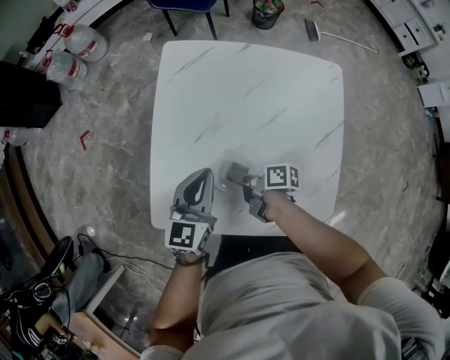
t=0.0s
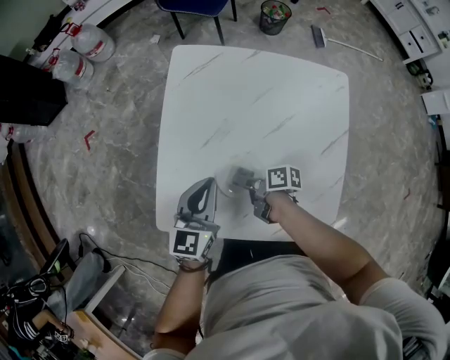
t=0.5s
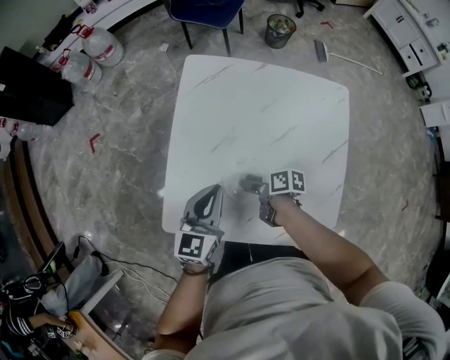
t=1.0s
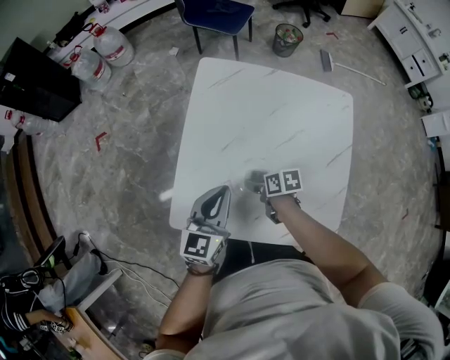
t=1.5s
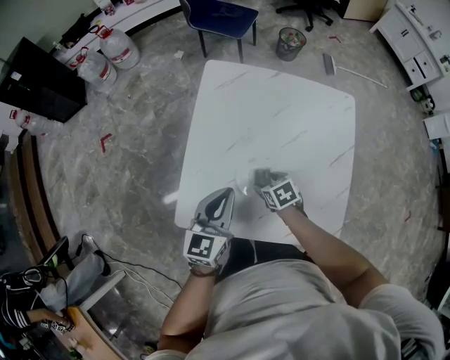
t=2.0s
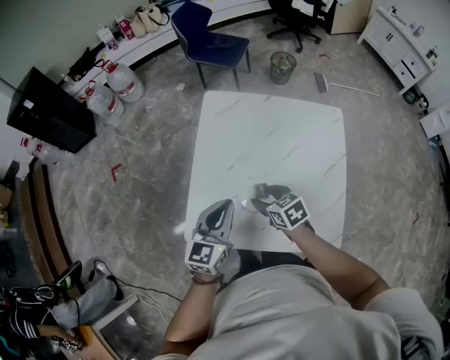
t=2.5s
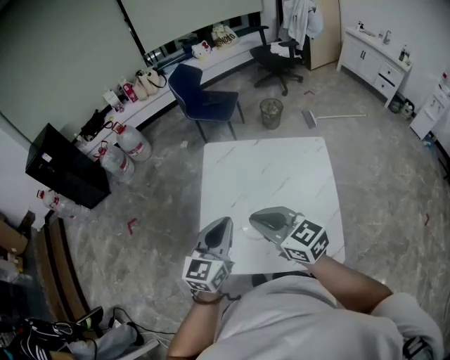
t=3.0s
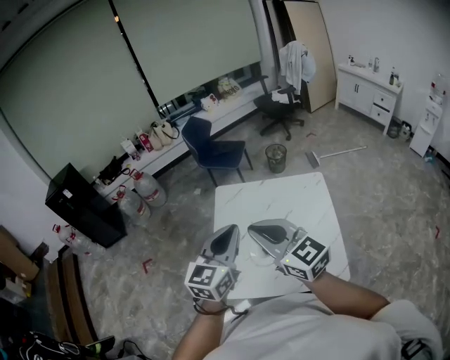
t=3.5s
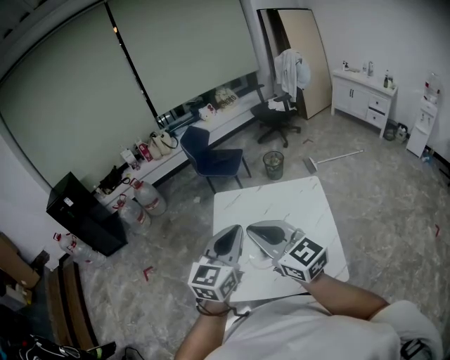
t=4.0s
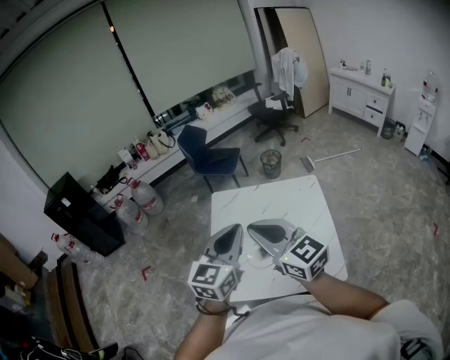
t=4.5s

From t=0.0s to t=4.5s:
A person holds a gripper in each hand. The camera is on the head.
From t=0.0s to t=2.0s: The left gripper goes roughly 5 cm to the left. Meanwhile the right gripper rolls counterclockwise, seen from behind, by some 60 degrees, and opens up.
From t=2.0s to t=4.5s: The right gripper shifts some 50 cm upward, tips its fingers upward by some 60 degrees, and closes up. Meanwhile the left gripper shifts approximately 35 cm upward, and swivels some 20 degrees.

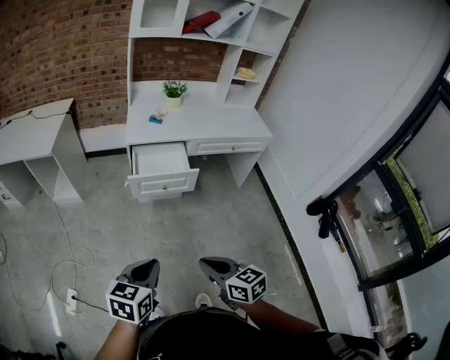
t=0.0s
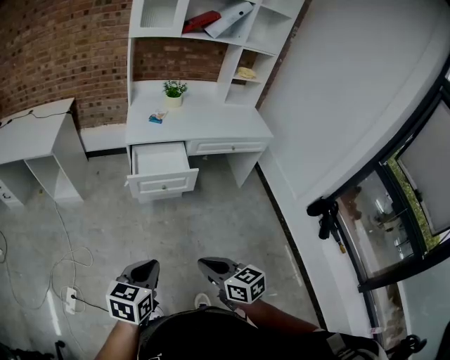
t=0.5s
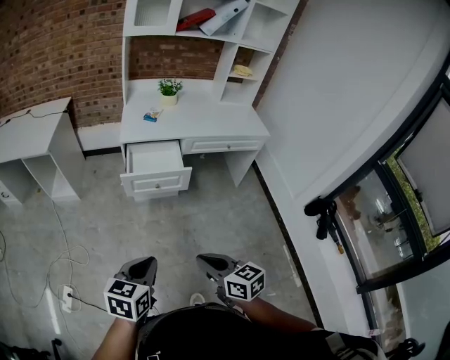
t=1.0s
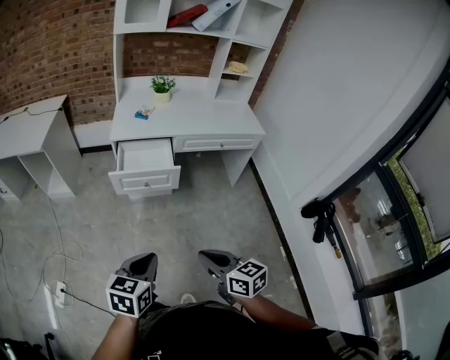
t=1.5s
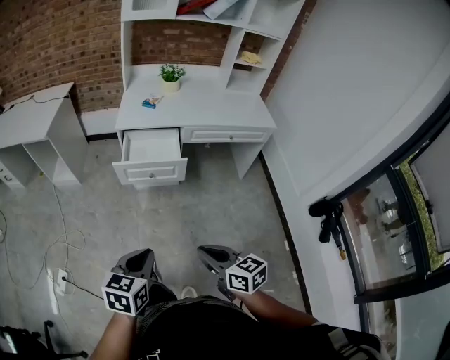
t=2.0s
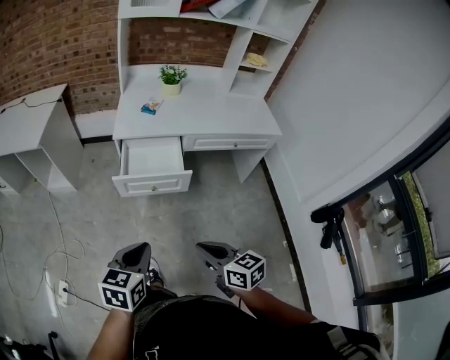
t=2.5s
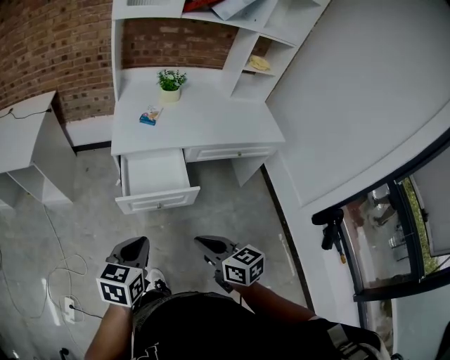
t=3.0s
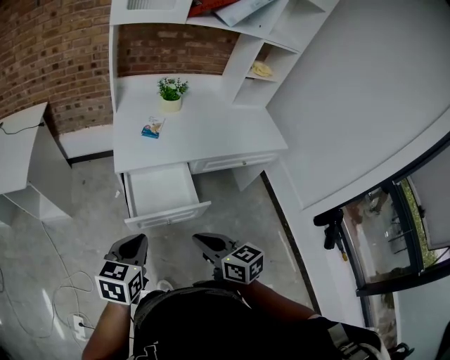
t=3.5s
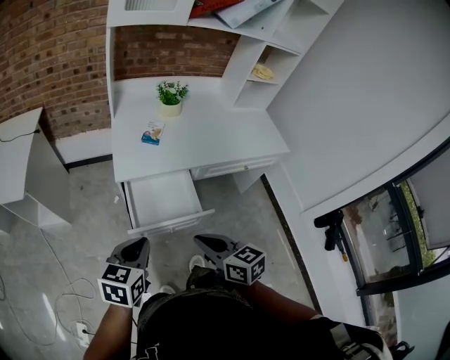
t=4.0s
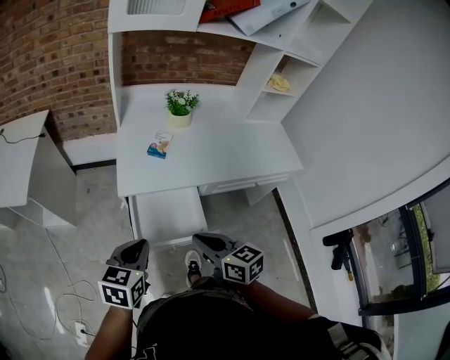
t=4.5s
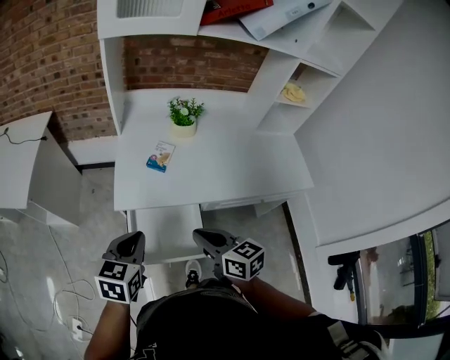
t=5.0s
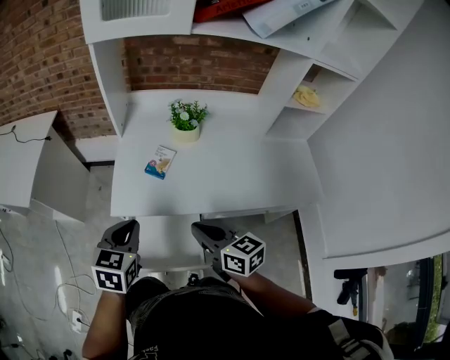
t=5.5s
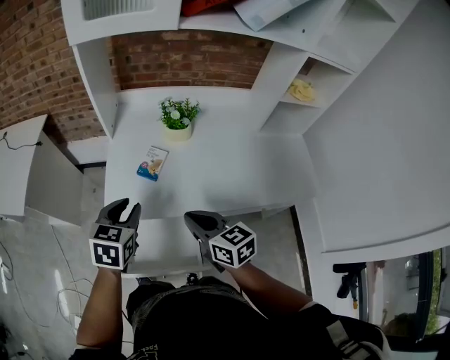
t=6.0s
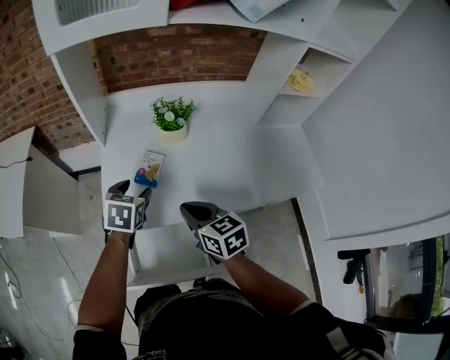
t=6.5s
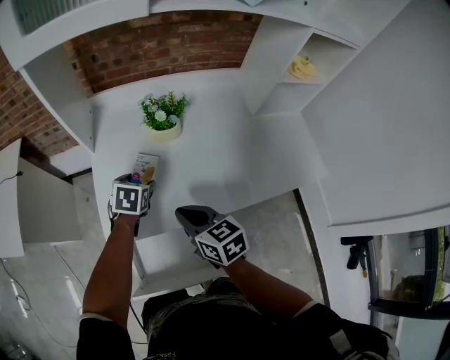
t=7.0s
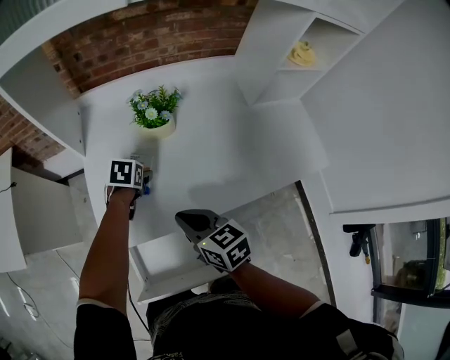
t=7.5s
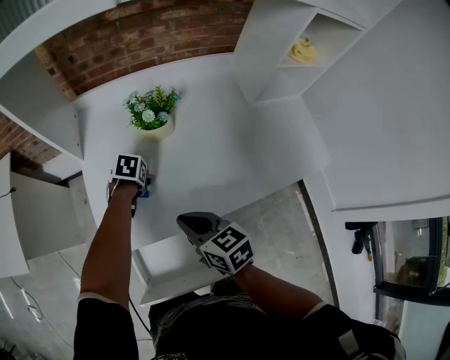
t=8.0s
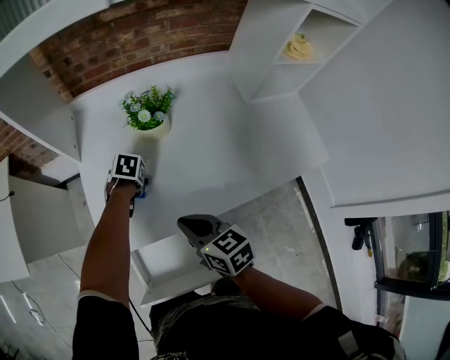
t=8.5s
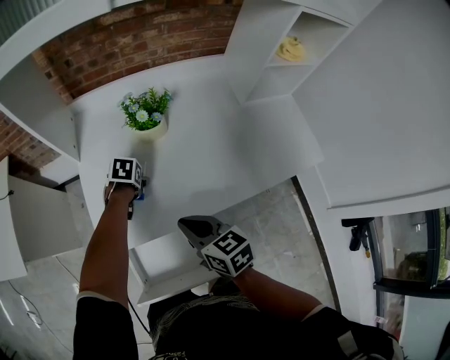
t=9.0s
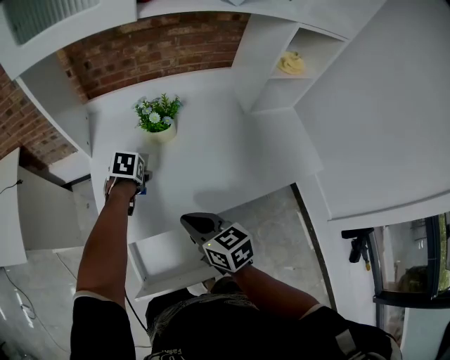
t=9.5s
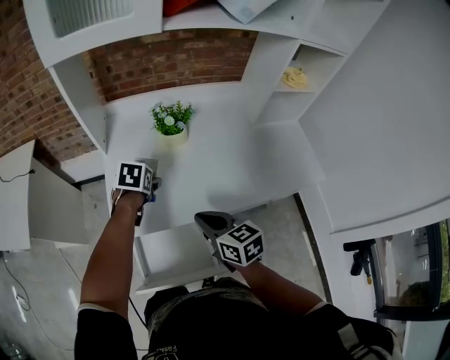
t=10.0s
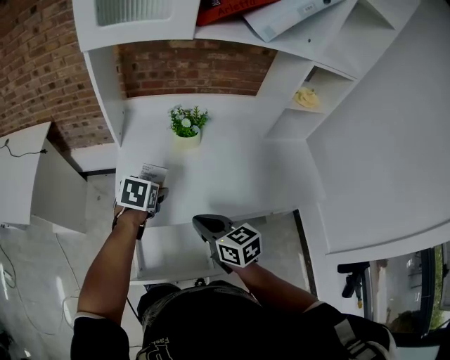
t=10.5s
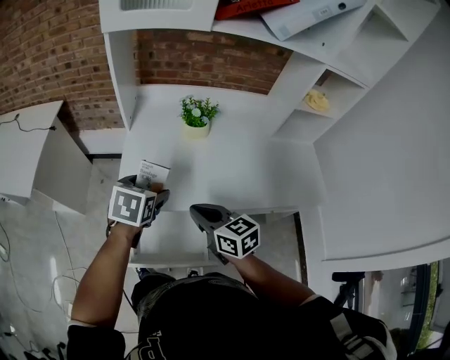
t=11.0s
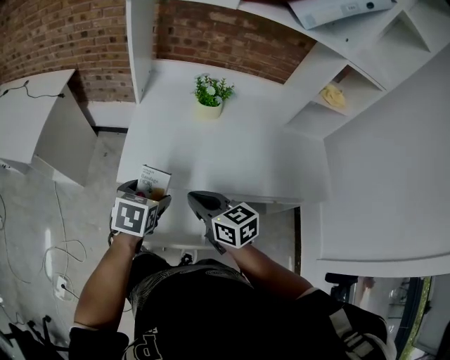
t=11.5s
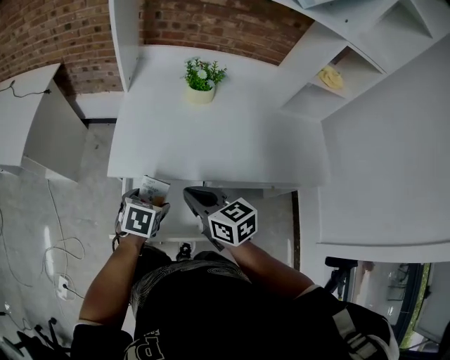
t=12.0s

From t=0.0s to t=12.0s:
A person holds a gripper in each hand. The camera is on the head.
From t=0.0s to t=2.0s: Both grippers move to the right, approximately 10 cm.
From t=2.0s to t=4.0s: Both grippers travel together forward, approximately 35 cm.
From t=4.0s to t=6.0s: The grippers both shift forward and to the right by roughly 30 cm.
From t=6.0s to t=8.0s: The right gripper is displaced forward and downward by roughly 10 cm, while the left gripper travels downward and forward by approximately 35 cm, angles its fingers downward, by some 40 degrees, and opens up.
From t=8.0s to t=10.0s: The left gripper shifts roughly 15 cm upward; the right gripper changes place by some 10 cm.
From t=10.0s to t=12.0s: The left gripper goes roughly 25 cm backward. Meanwhile the right gripper moves backward and to the left, approximately 10 cm.

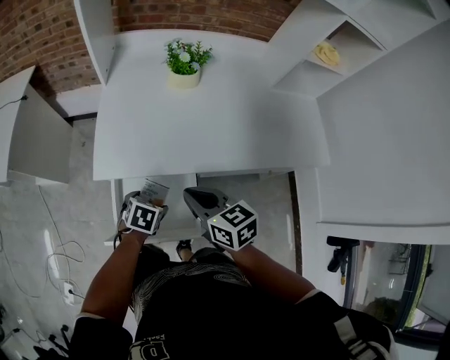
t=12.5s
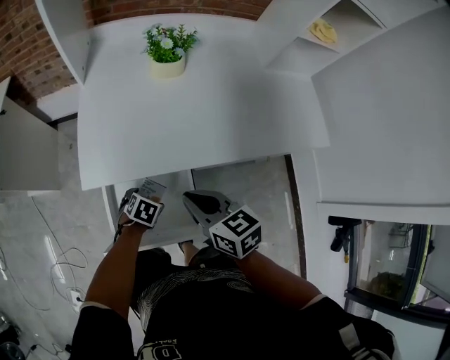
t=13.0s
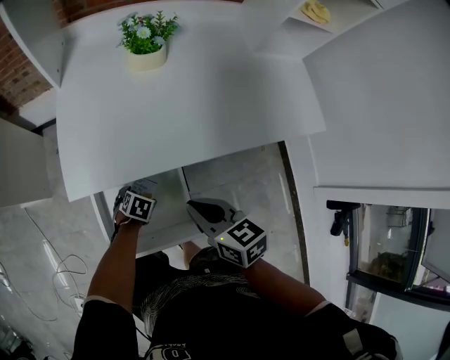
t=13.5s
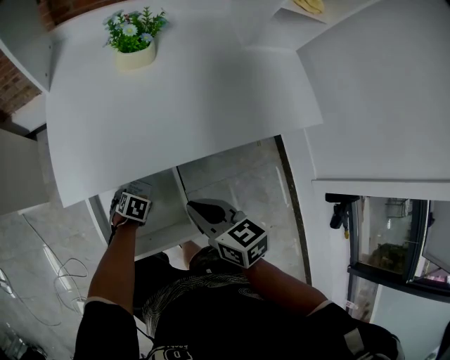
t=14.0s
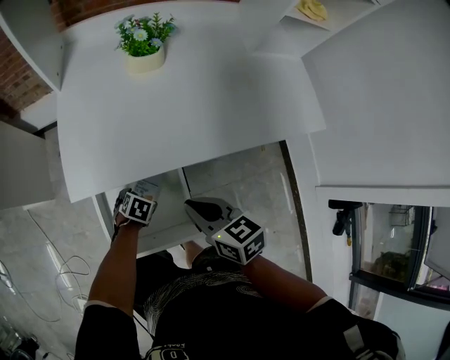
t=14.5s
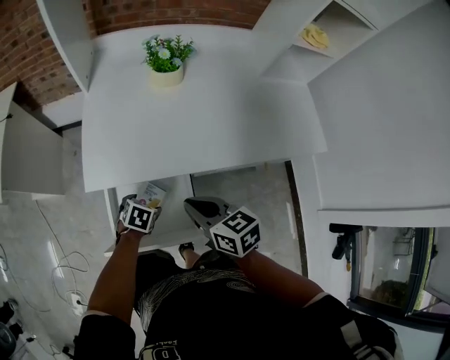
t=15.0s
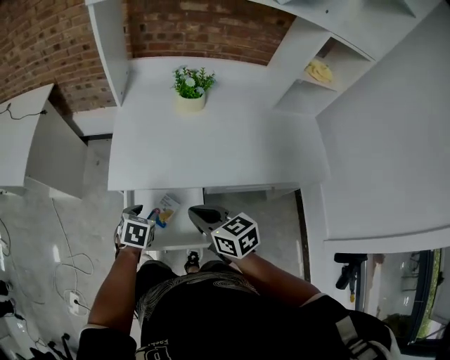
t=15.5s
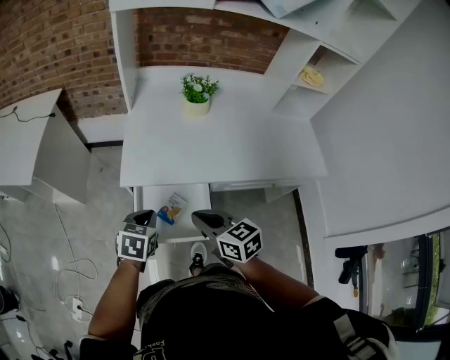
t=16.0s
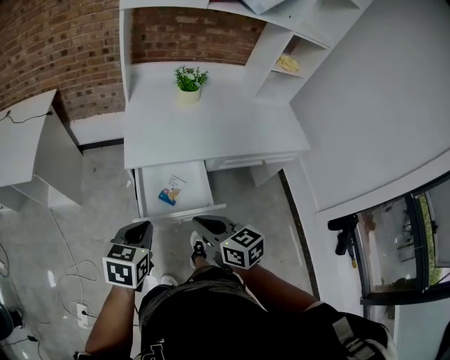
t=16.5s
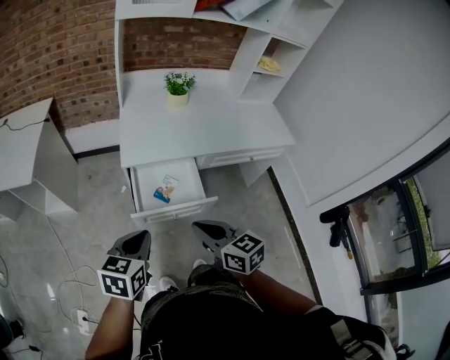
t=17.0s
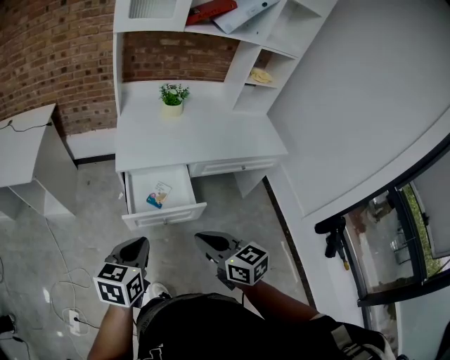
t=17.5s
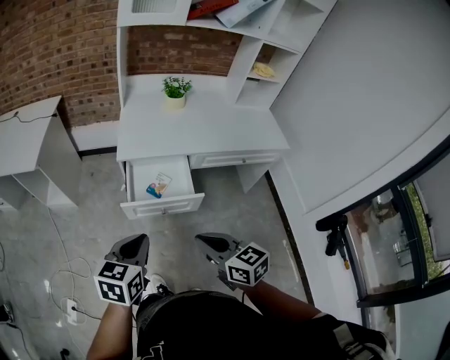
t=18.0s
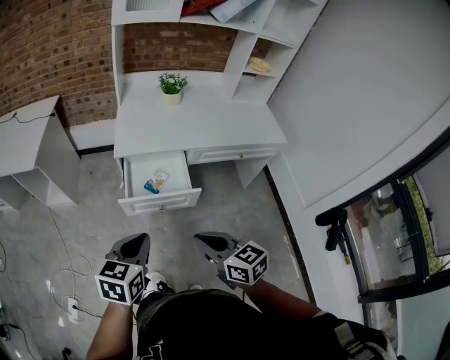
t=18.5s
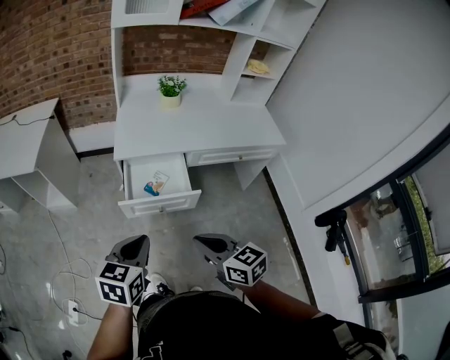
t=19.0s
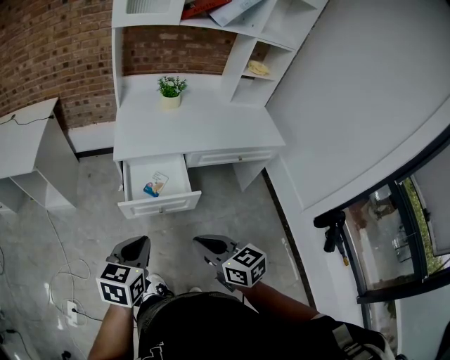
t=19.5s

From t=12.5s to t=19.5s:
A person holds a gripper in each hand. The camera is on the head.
From t=12.5s to t=14.5s: The right gripper travels downward by approximately 5 cm; the left gripper is displaced downward by roughly 15 cm.
From t=14.5s to t=16.0s: The left gripper is displaced upward by approximately 30 cm, turns by approximately 40 degrees, and closes, while the right gripper shifts by some 15 cm.
From t=16.0s to t=17.5s: The right gripper heads backward, covering roughly 25 cm, while the left gripper is displaced backward and upward by some 30 cm, and swivels approximately 20 degrees.
From t=17.5s to t=19.5s: The grippers both shift backward by some 5 cm.

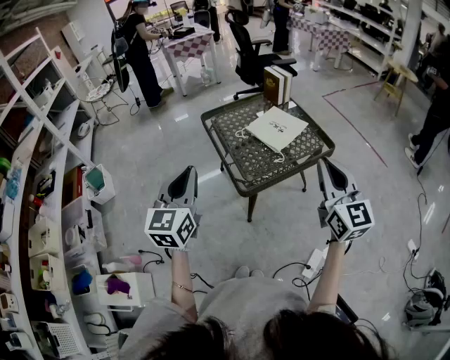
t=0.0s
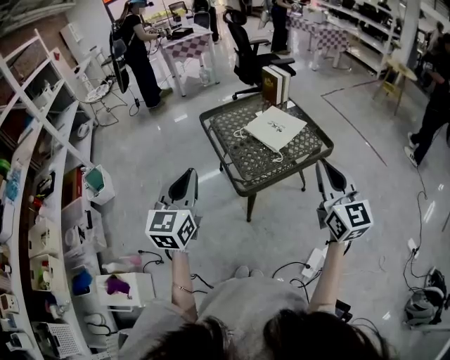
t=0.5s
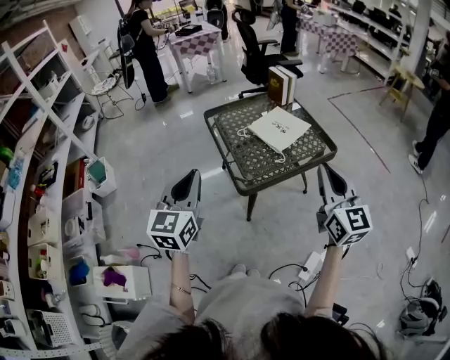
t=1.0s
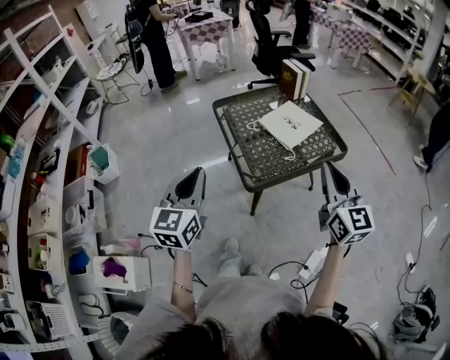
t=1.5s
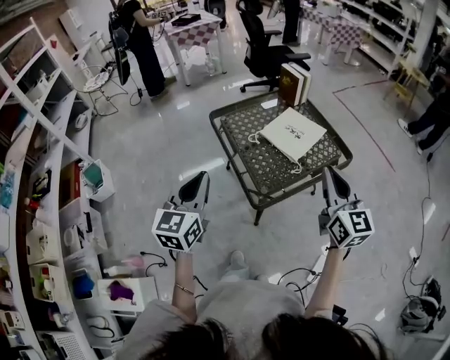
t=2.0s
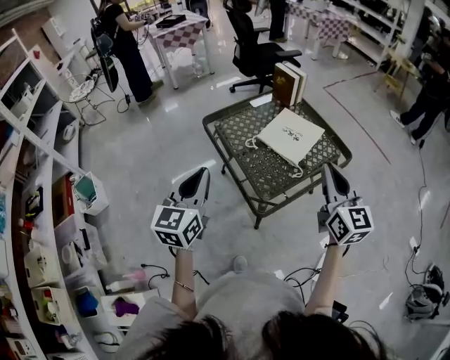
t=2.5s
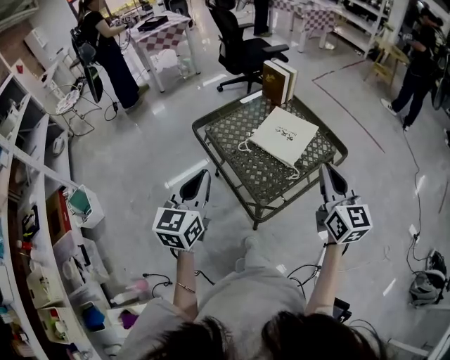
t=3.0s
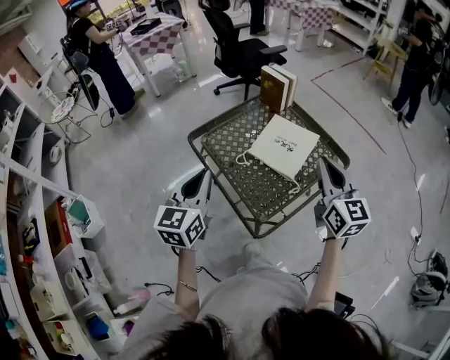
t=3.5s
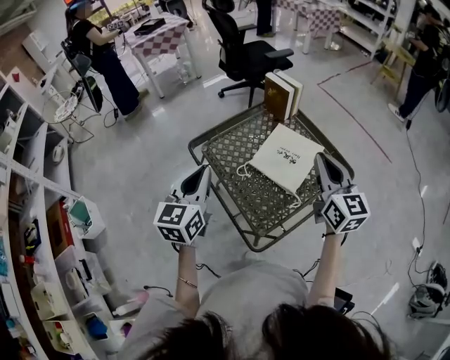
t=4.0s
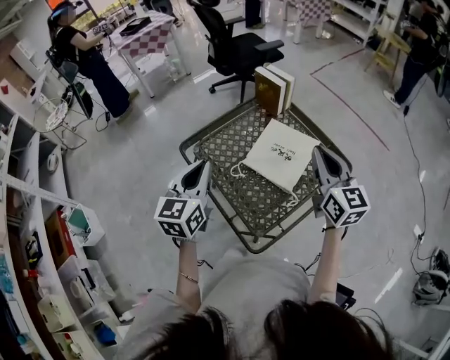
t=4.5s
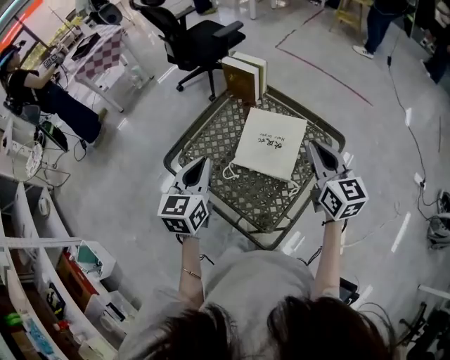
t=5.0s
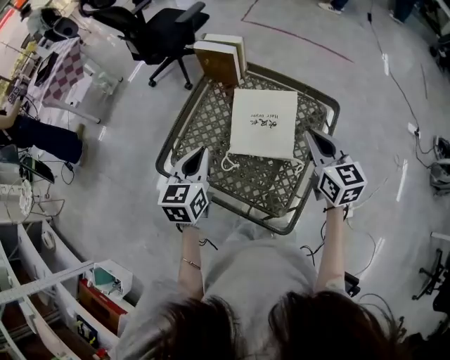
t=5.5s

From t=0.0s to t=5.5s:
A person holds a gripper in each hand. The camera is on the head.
From t=0.0s to t=2.0s: Both grippers travel together forward and downward, roughly 10 cm.
From t=2.0s to t=3.5s: The grippers both shift forward by approximately 20 cm.
From t=3.5s to t=5.5s: The right gripper goes roughly 10 cm downward, and swivels roughly 30 degrees. The left gripper moves roughly 25 cm, and turns by some 30 degrees.
